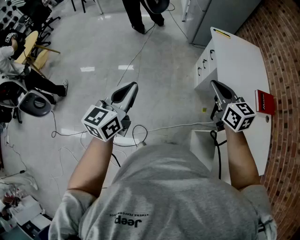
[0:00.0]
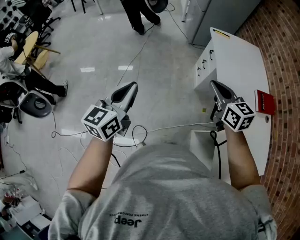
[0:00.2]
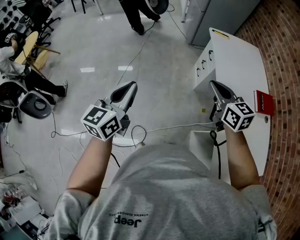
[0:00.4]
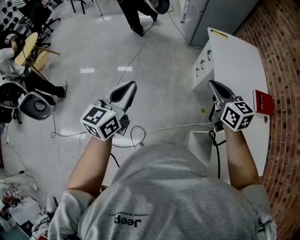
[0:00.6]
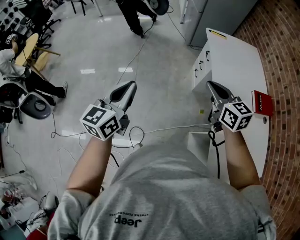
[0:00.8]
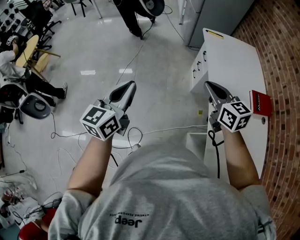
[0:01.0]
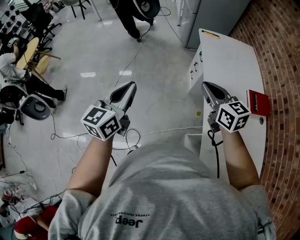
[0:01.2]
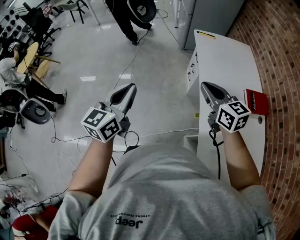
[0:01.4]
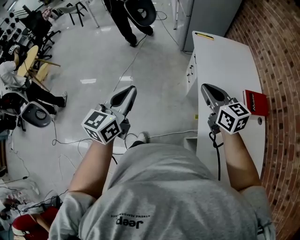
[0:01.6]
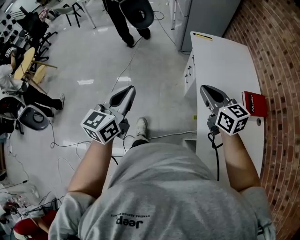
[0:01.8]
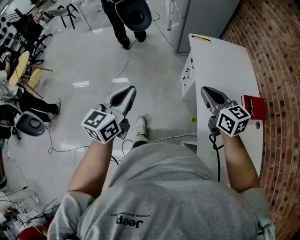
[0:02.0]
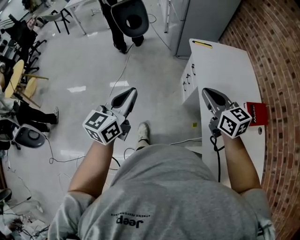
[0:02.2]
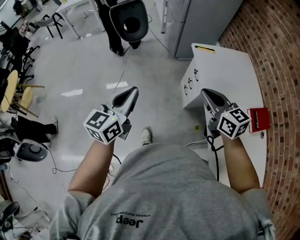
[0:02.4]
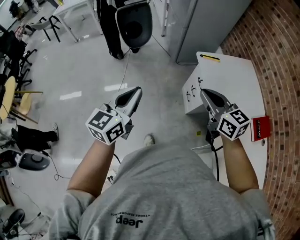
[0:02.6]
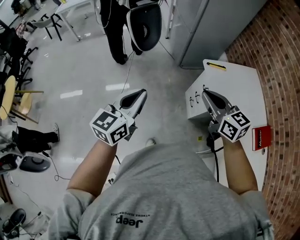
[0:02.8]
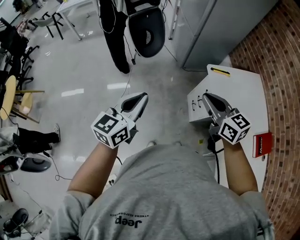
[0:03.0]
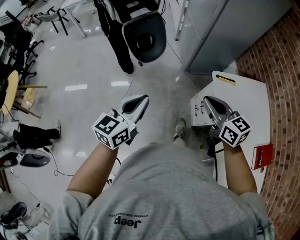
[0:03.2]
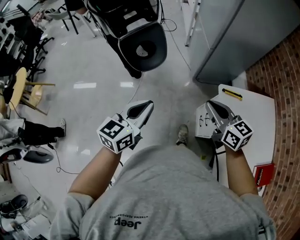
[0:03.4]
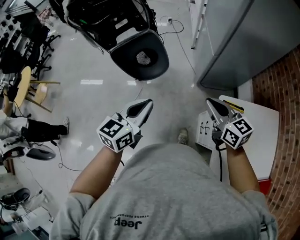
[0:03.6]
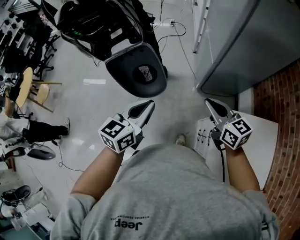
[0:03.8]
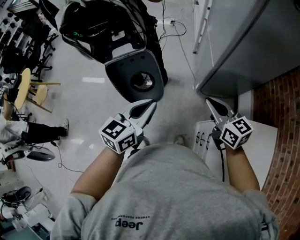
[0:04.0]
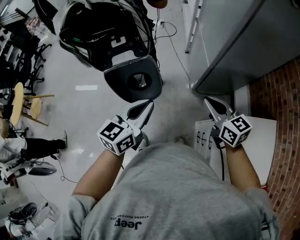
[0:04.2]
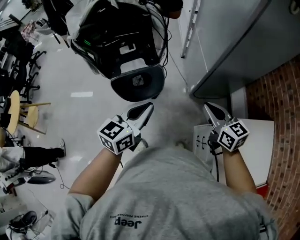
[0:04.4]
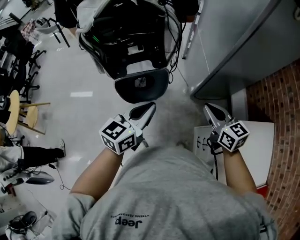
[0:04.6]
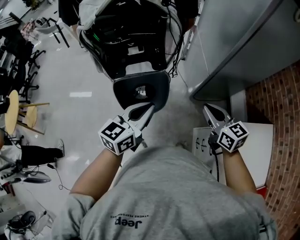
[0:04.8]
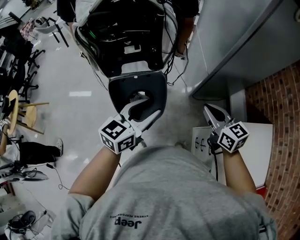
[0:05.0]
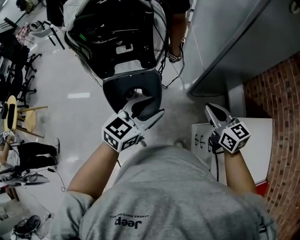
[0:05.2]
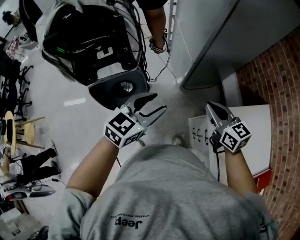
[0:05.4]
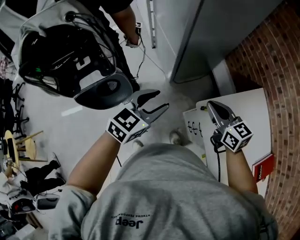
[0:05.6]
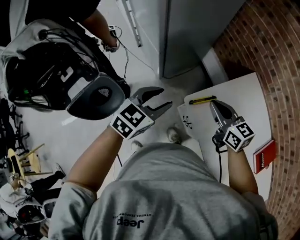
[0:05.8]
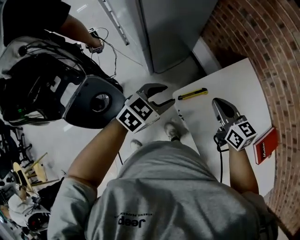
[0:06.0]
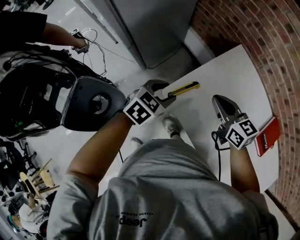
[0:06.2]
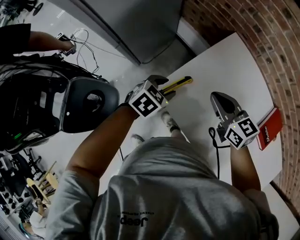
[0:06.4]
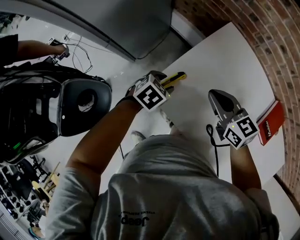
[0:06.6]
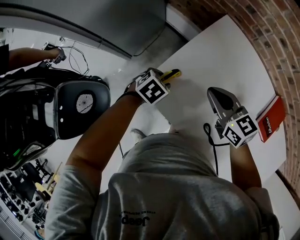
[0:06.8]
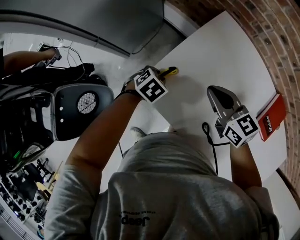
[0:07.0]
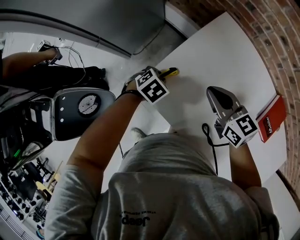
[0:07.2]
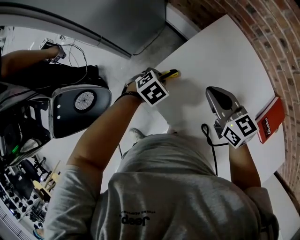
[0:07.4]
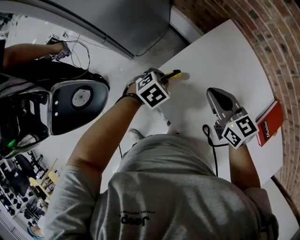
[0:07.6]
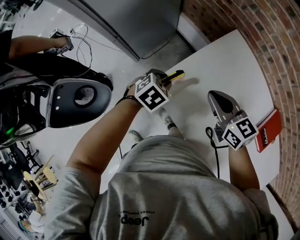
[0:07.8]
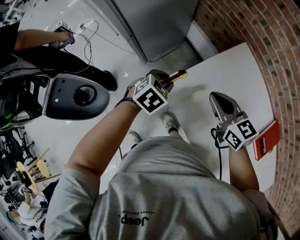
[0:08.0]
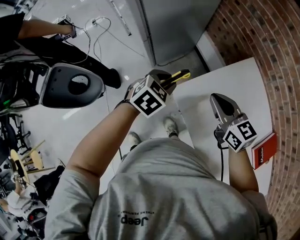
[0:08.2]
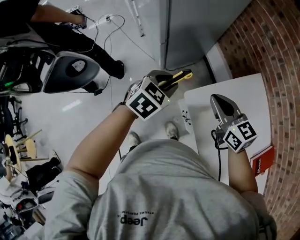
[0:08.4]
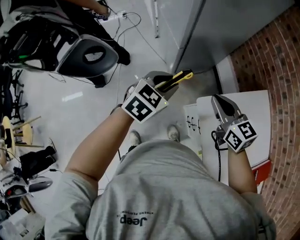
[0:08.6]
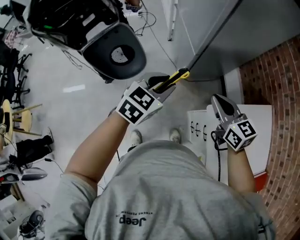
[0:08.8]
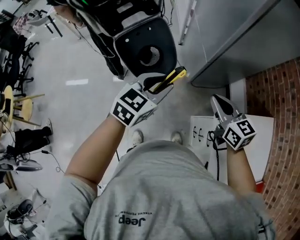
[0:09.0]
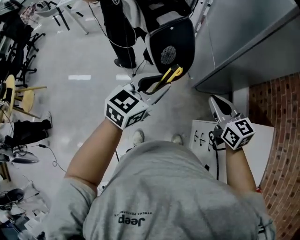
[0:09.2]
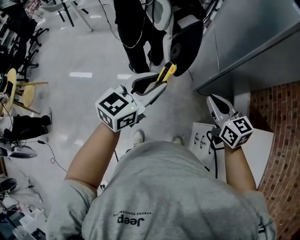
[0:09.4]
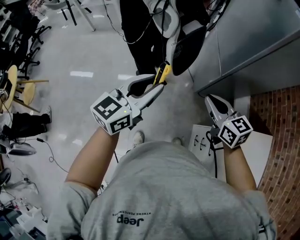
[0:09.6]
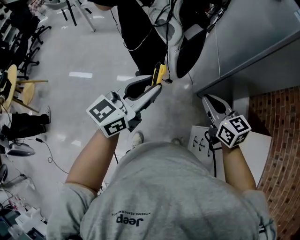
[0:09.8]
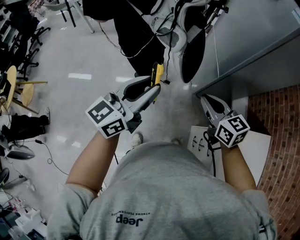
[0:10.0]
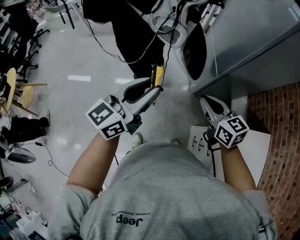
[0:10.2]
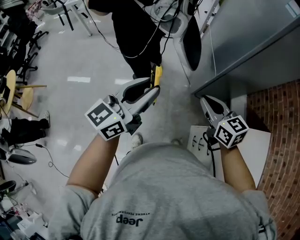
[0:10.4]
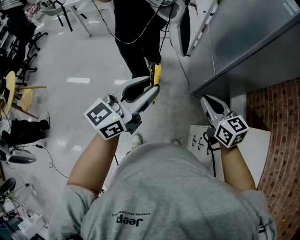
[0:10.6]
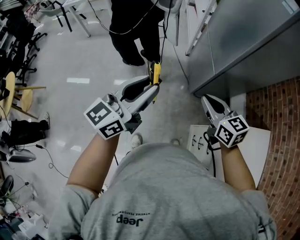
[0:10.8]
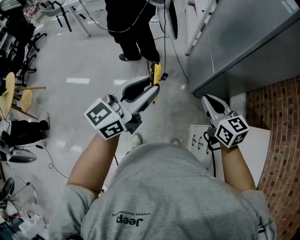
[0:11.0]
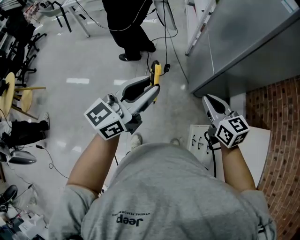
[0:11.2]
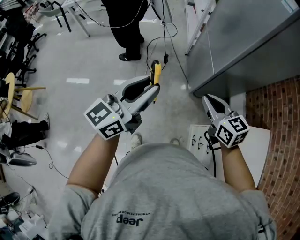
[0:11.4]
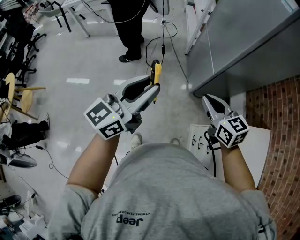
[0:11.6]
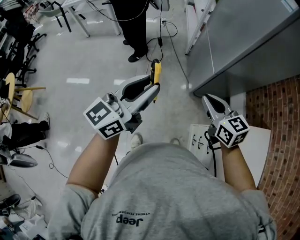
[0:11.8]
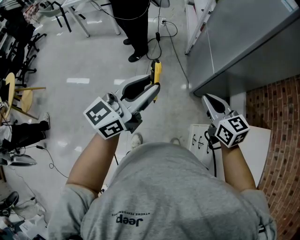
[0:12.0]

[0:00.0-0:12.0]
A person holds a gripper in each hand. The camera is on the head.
0:00.0 to 0:01.6: The two grippers go roughly 15 cm to the right.
0:01.6 to 0:03.0: The left gripper moves forward, roughly 40 cm. Meanwhile the right gripper goes about 40 cm forward and to the left.
0:03.0 to 0:04.4: The two grippers go some 30 cm forward.
0:04.4 to 0:06.0: The right gripper shifts by about 25 cm, and swivels roughly 30 degrees. The left gripper moves approximately 25 cm, rotates about 60 degrees, and opens its fingers.
0:06.0 to 0:07.6: The right gripper swings left and right, roughly 10 cm each way, with 2 reversals. The left gripper shifts roughly 25 cm downward, to the right and forward, and swivels some 30 degrees.
0:07.6 to 0:09.0: The left gripper shifts by some 50 cm, and points its fingers approximately 40 degrees further upward; the right gripper changes place by some 40 cm, and rotates about 30 degrees.
0:09.0 to 0:10.4: The right gripper heads to the left, covering about 10 cm; the left gripper goes about 15 cm to the left and upward, and tilts its fingers roughly 30 degrees upward.
0:10.4 to 0:12.0: The grippers move only a little.

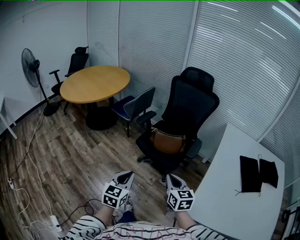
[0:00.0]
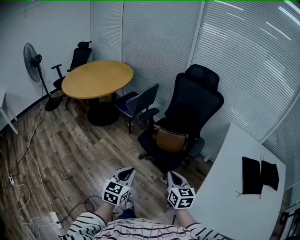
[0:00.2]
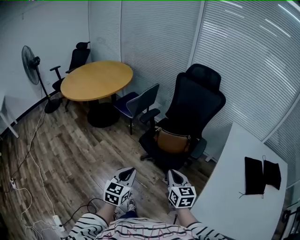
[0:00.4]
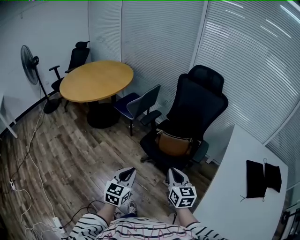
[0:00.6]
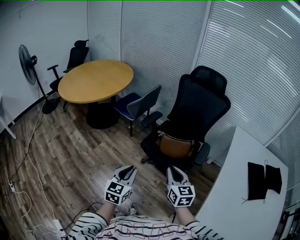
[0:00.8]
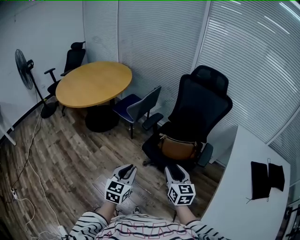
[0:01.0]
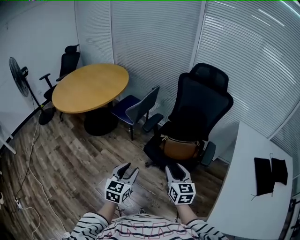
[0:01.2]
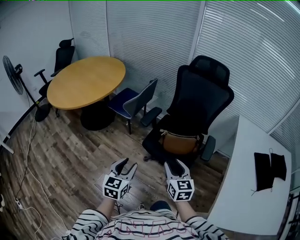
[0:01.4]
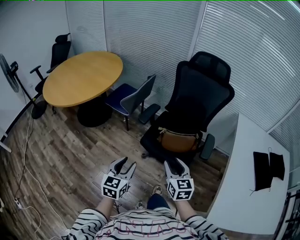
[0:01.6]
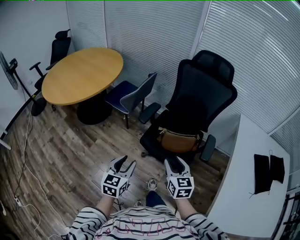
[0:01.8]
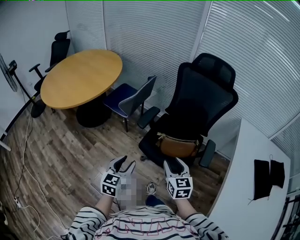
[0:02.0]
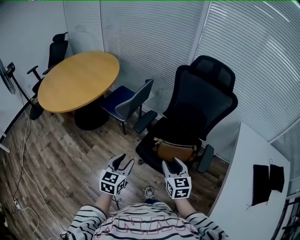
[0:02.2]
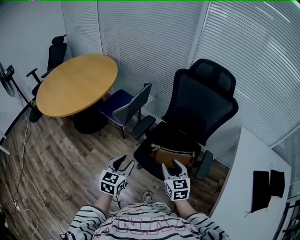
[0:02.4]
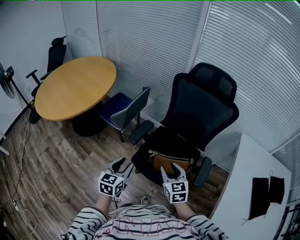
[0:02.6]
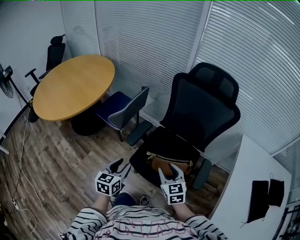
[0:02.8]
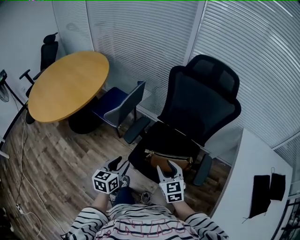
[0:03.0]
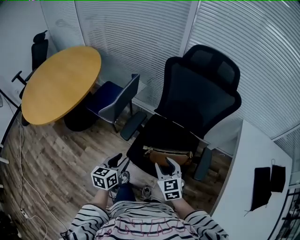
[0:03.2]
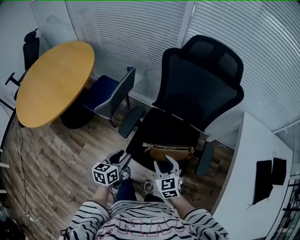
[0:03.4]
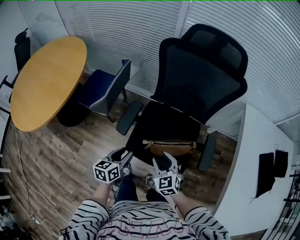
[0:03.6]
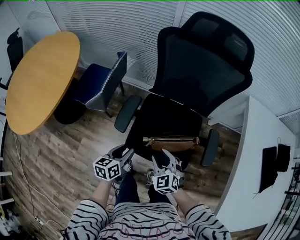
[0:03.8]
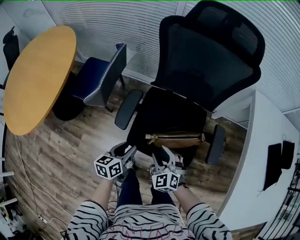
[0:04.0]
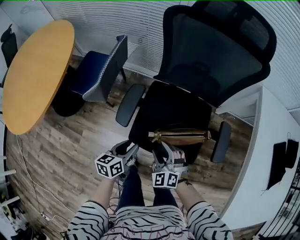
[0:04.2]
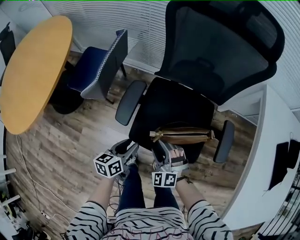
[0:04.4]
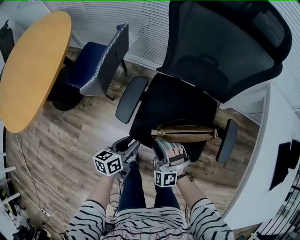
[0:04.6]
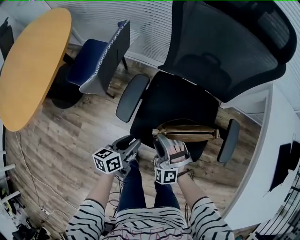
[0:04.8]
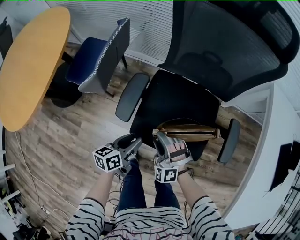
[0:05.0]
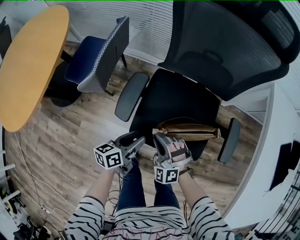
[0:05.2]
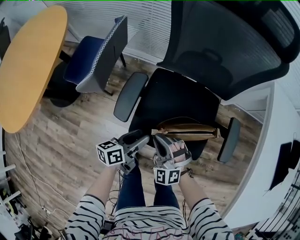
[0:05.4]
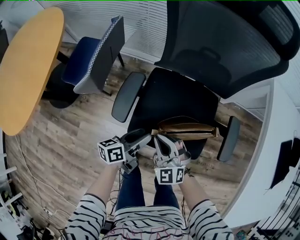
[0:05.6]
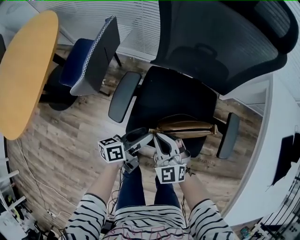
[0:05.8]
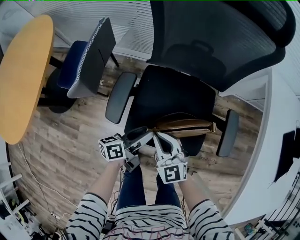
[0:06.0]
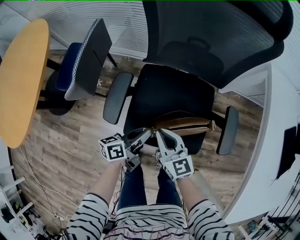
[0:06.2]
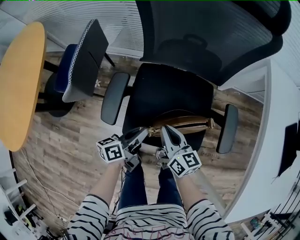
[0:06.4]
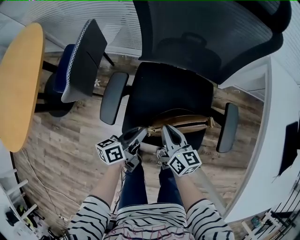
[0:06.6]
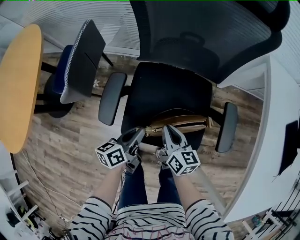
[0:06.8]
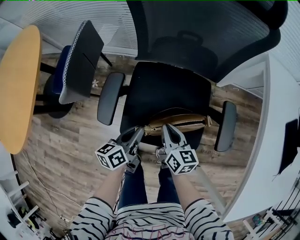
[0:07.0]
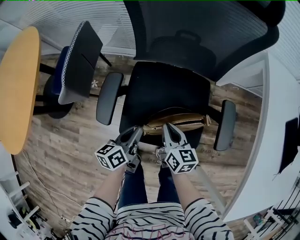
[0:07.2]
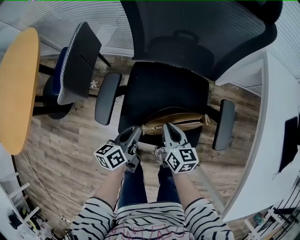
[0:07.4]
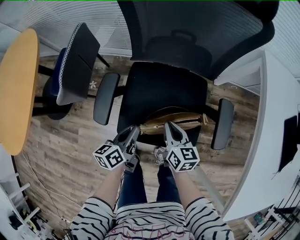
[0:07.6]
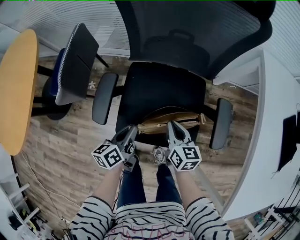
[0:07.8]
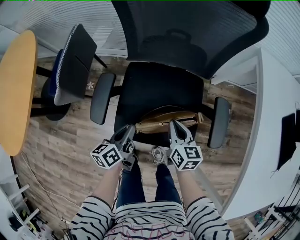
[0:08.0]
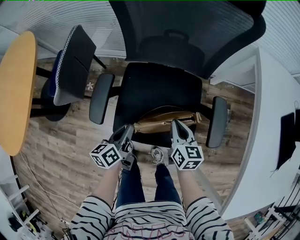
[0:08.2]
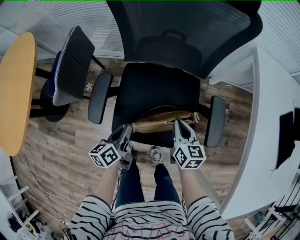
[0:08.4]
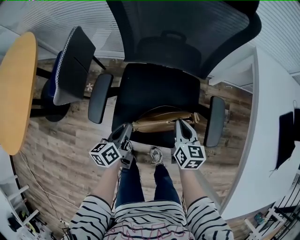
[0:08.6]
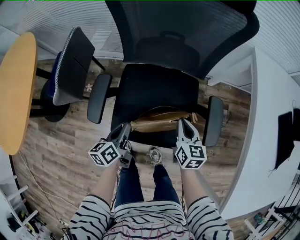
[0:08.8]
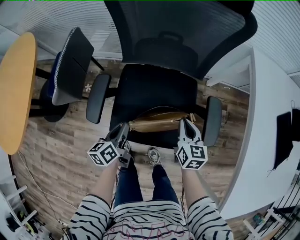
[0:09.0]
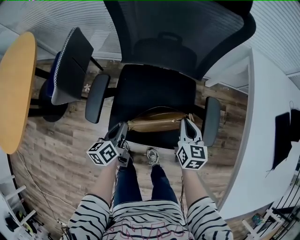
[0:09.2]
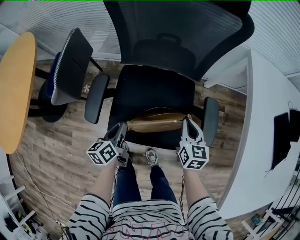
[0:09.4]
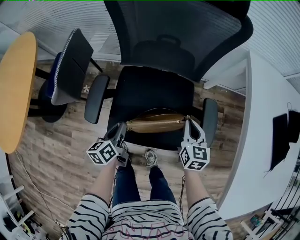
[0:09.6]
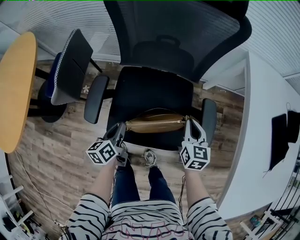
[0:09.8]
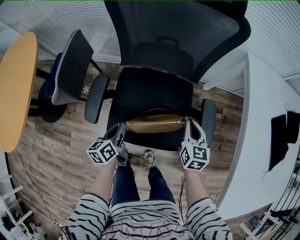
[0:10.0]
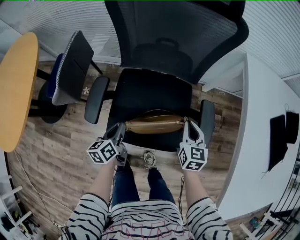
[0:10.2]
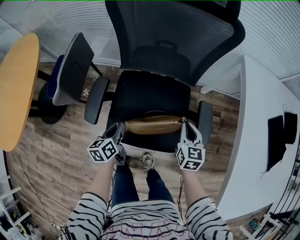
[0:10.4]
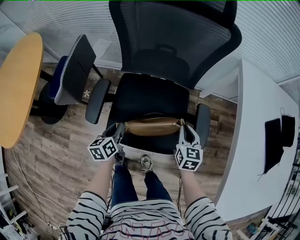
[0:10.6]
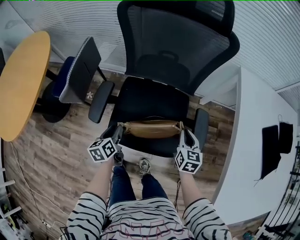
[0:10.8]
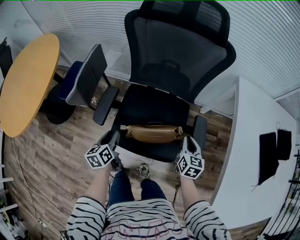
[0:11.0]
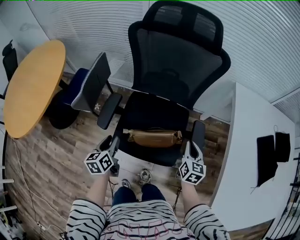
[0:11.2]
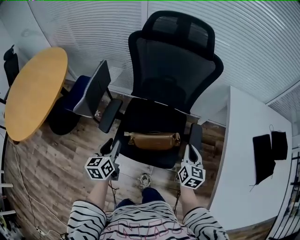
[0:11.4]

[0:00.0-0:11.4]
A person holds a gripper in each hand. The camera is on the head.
0:00.0 to 0:01.4: Both grippers travel together forward and to the left, about 25 cm. The right gripper opens, while the left gripper opens its fingers.
0:01.4 to 0:02.8: Both grippers move forward, roughly 25 cm.
0:02.8 to 0:04.2: The left gripper goes about 20 cm downward and forward, and changes its angle by about 30 degrees. The right gripper is displaced downward and to the left by about 20 cm, and turns by roughly 40 degrees.
0:04.2 to 0:05.6: The right gripper closes its fingers. Meanwhile the left gripper shifts roughly 5 cm forward, and rotates roughly 20 degrees.
0:05.6 to 0:07.2: The right gripper shifts roughly 10 cm to the right and forward, and rolls clockwise, seen from behind, by some 70 degrees. The left gripper closes.
0:07.2 to 0:08.6: The right gripper moves to the right, about 10 cm.
0:08.6 to 0:10.0: The right gripper is displaced to the right by about 5 cm.
0:10.0 to 0:11.4: The grippers both shift upward and backward by roughly 15 cm. The left gripper rotates approximately 20 degrees, and opens up.
